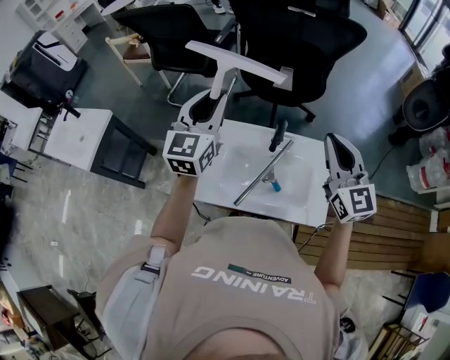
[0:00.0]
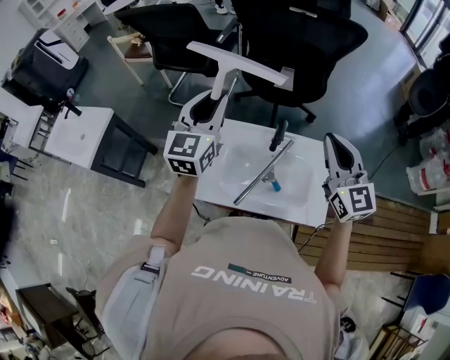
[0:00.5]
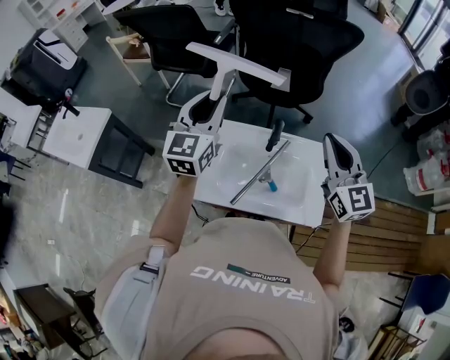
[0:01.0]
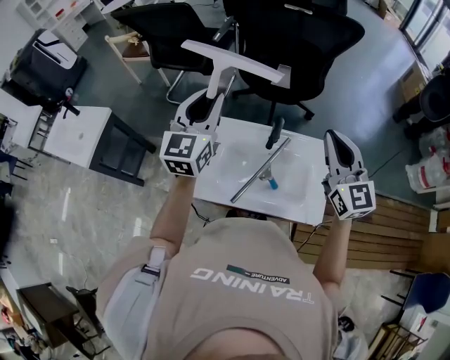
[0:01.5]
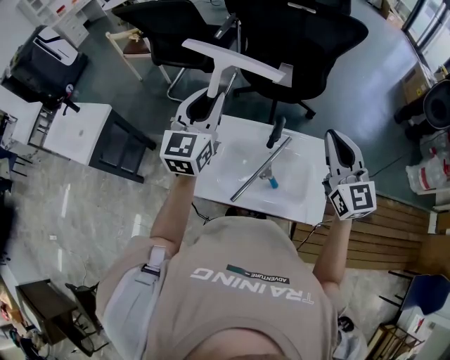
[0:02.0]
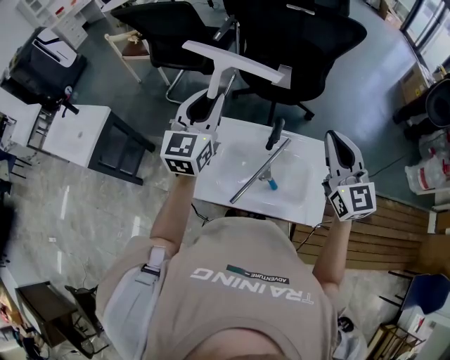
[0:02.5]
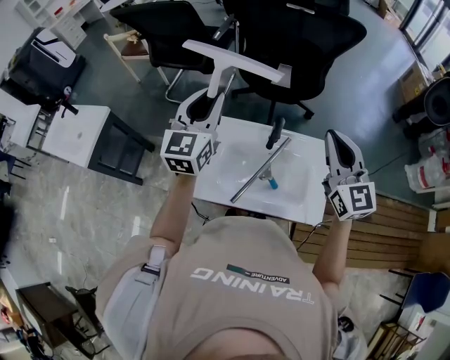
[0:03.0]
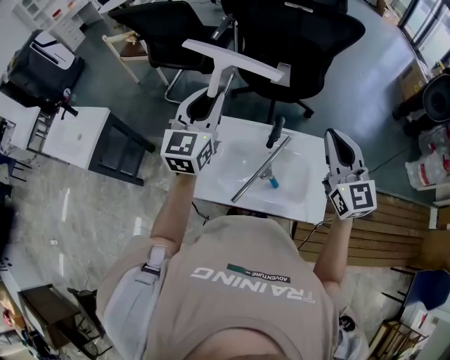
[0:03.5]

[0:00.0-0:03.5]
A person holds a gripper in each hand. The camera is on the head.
0:00.0 to 0:03.5: Both grippers stay put.

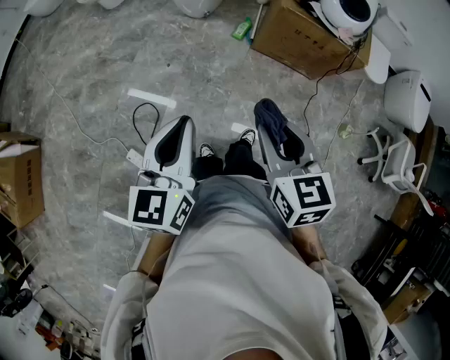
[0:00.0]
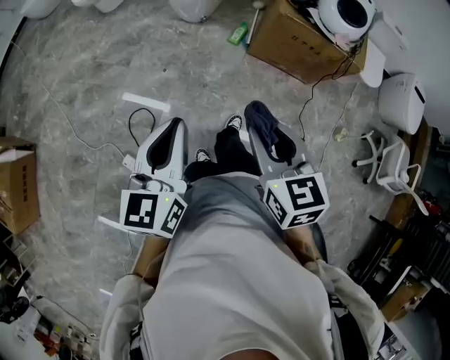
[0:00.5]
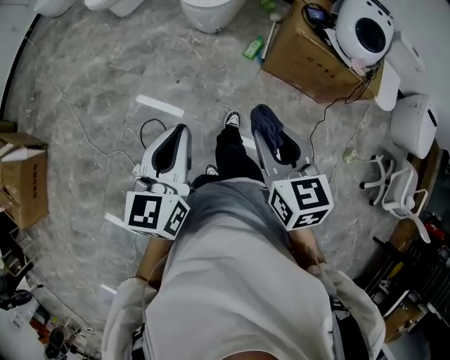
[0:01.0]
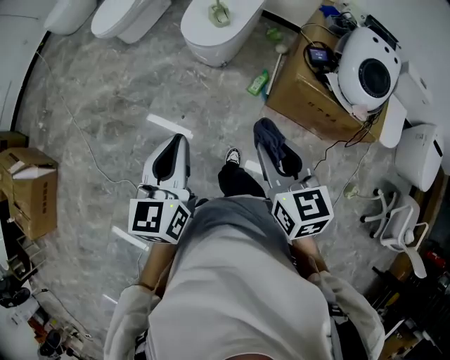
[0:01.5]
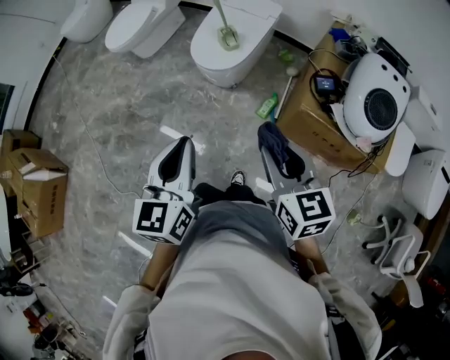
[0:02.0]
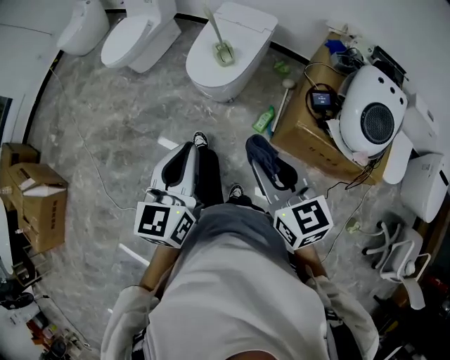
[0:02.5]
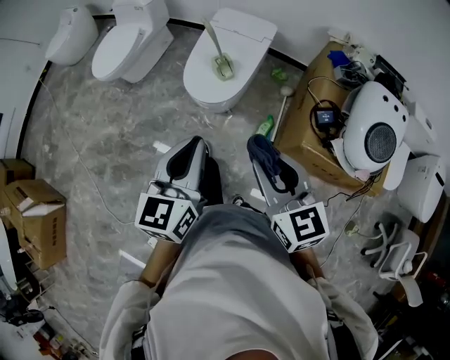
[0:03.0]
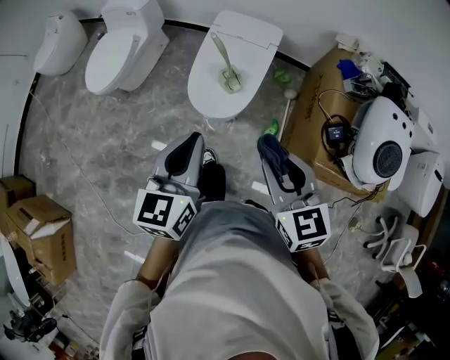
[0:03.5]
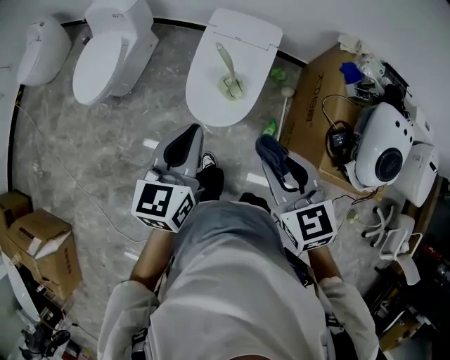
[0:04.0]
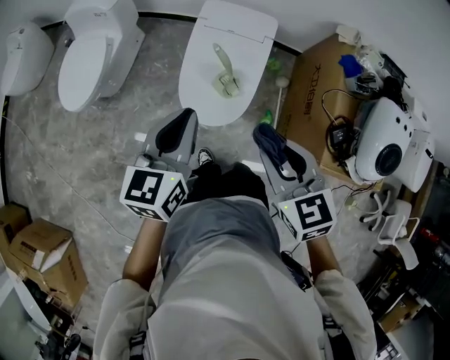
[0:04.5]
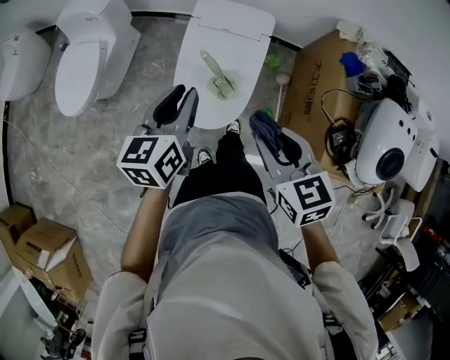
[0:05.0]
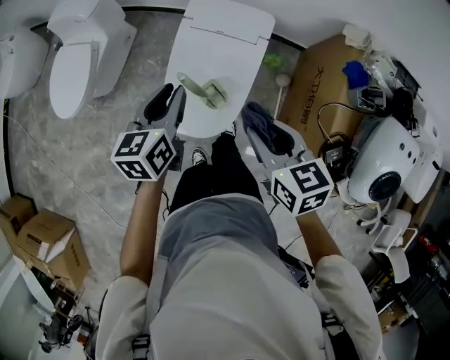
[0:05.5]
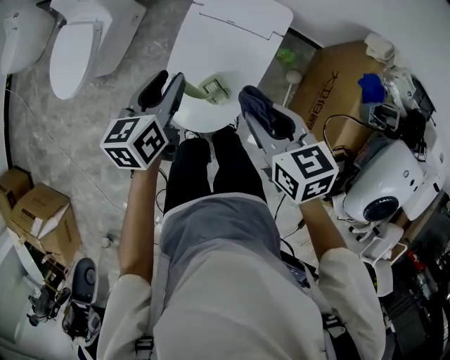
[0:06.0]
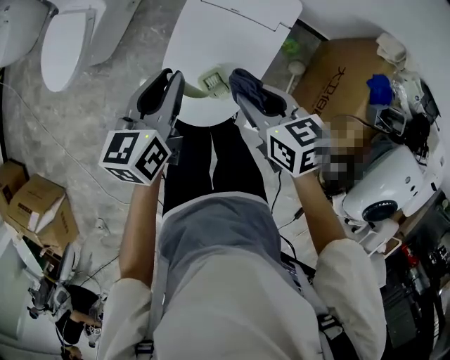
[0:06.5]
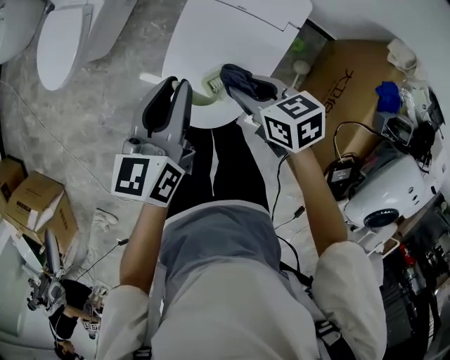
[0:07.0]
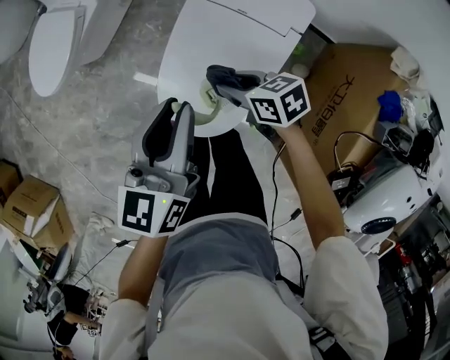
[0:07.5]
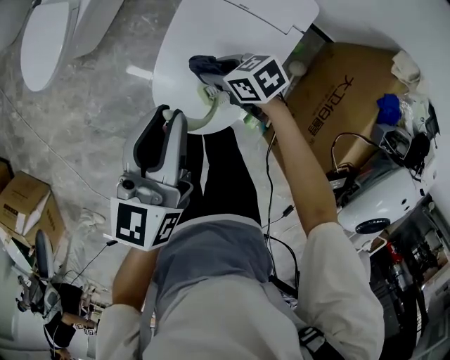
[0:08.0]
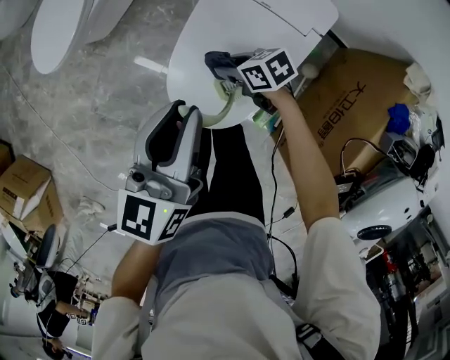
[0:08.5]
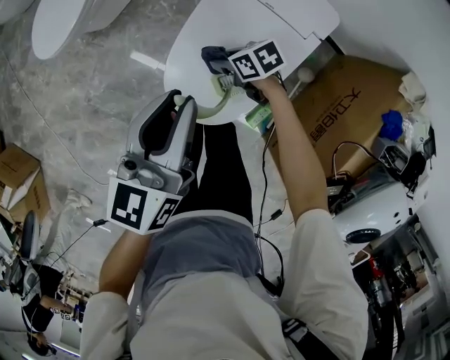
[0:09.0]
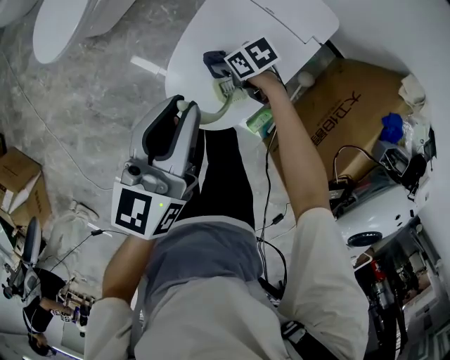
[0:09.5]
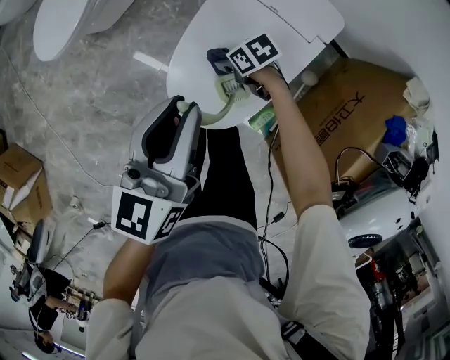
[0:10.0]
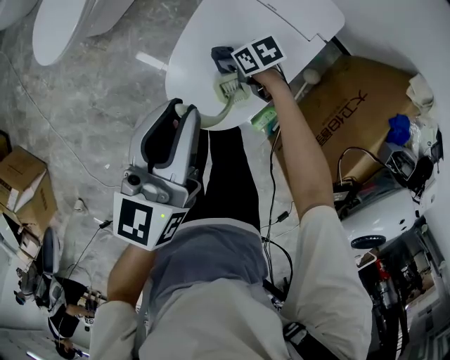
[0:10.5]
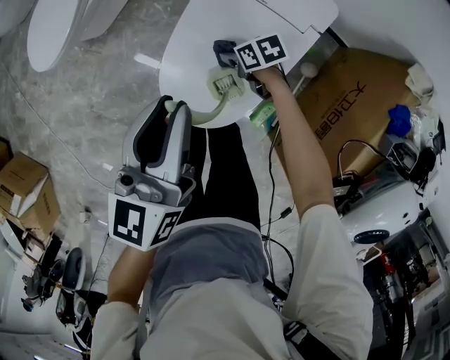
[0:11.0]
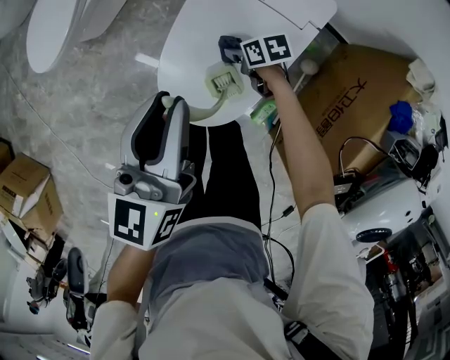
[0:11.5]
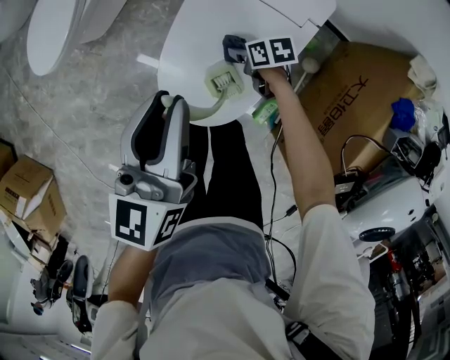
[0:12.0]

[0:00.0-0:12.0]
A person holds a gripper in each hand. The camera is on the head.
0:00.0 to 0:02.0: Both grippers move forward, about 40 cm.
0:02.0 to 0:04.0: Both grippers are carried forward, about 40 cm.
0:04.0 to 0:06.0: The grippers both shift forward and downward by some 35 cm. The right gripper turns by about 20 degrees.
0:06.0 to 0:08.0: The right gripper travels downward by some 25 cm, and changes its angle by some 40 degrees.
0:08.0 to 0:10.0: The right gripper moves downward, about 10 cm.
0:10.0 to 0:12.0: The right gripper heads to the right, covering about 10 cm, and swivels roughly 30 degrees.

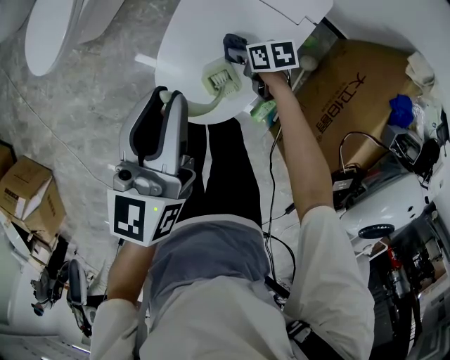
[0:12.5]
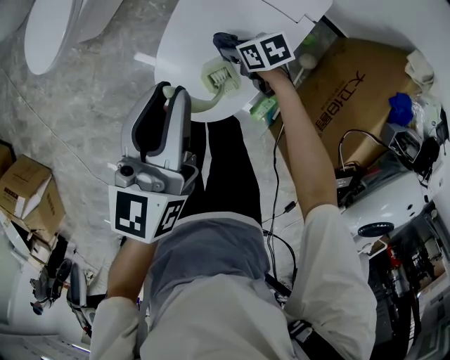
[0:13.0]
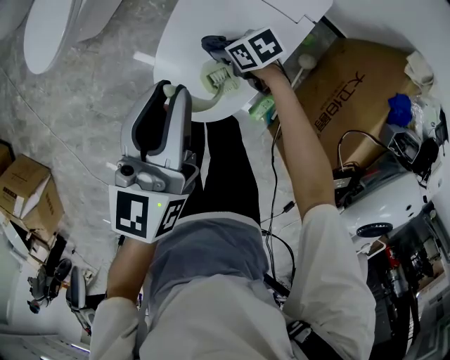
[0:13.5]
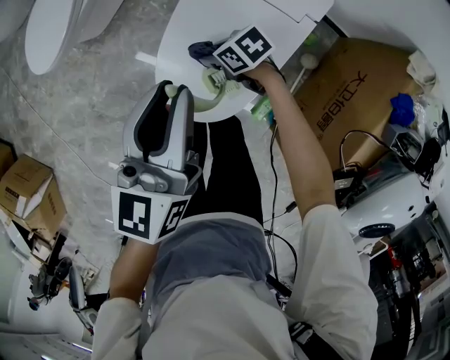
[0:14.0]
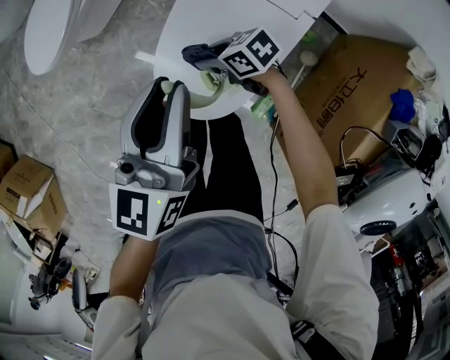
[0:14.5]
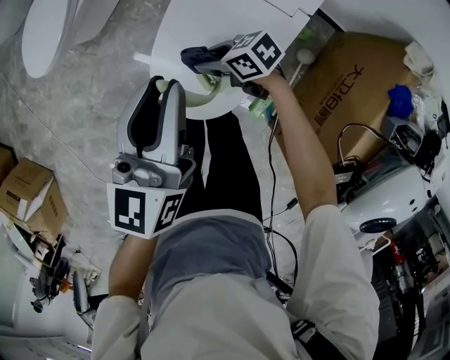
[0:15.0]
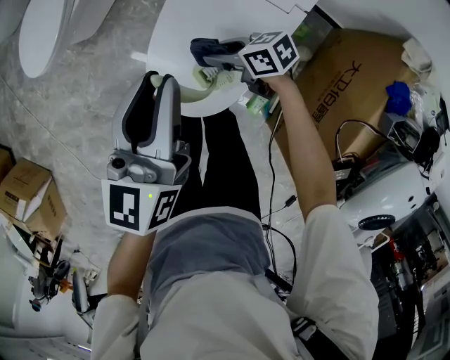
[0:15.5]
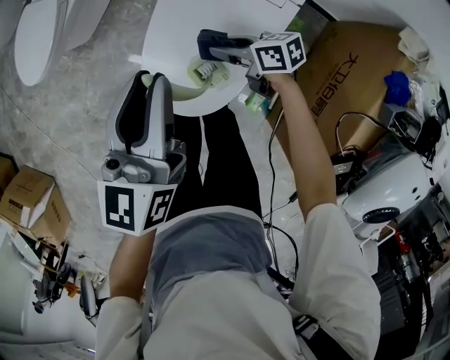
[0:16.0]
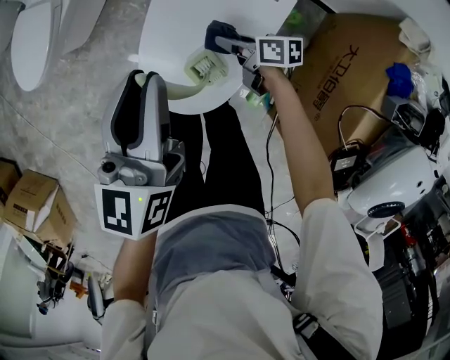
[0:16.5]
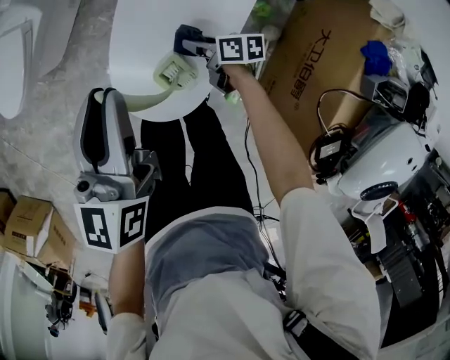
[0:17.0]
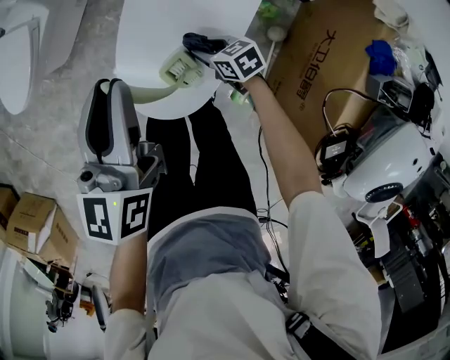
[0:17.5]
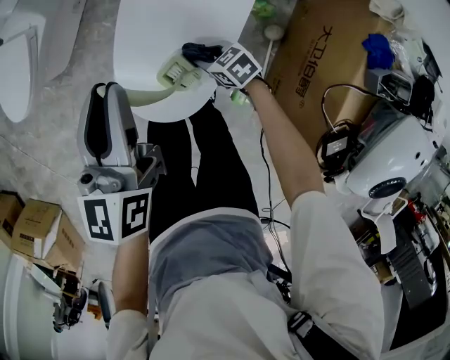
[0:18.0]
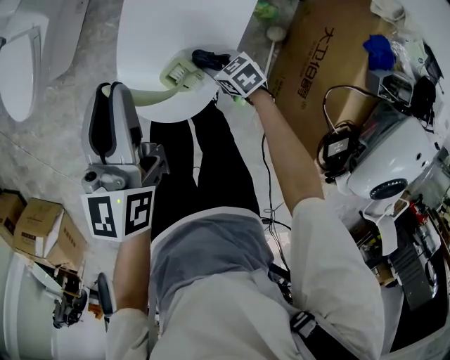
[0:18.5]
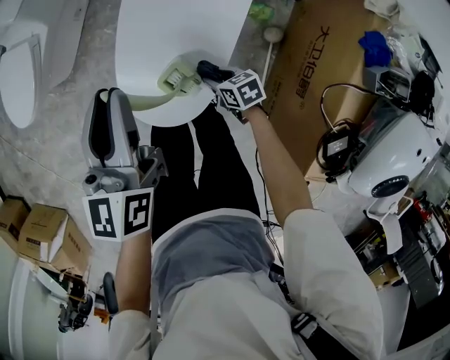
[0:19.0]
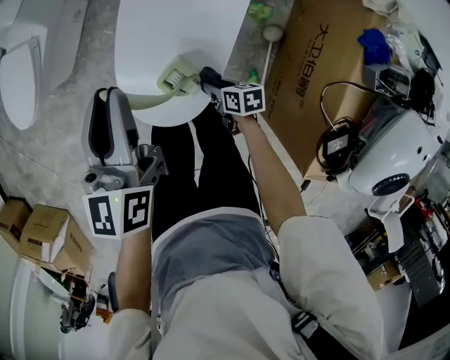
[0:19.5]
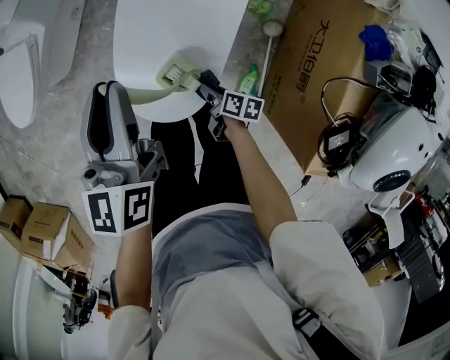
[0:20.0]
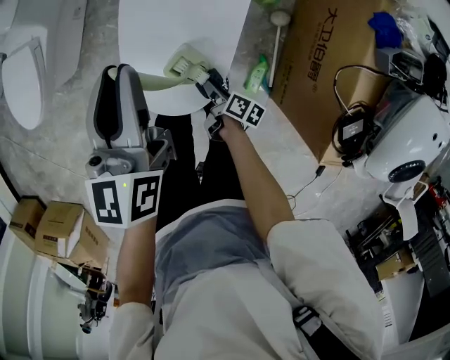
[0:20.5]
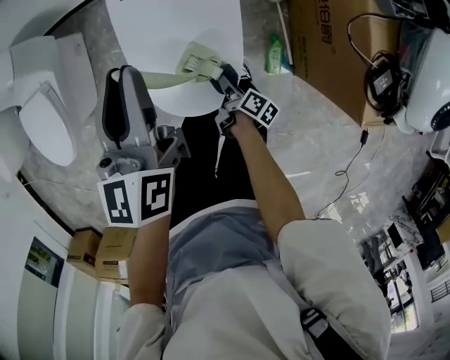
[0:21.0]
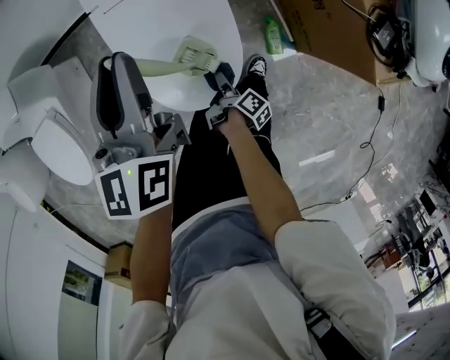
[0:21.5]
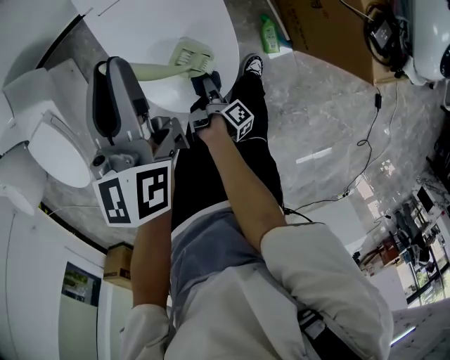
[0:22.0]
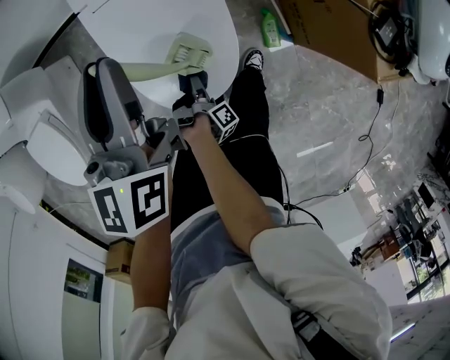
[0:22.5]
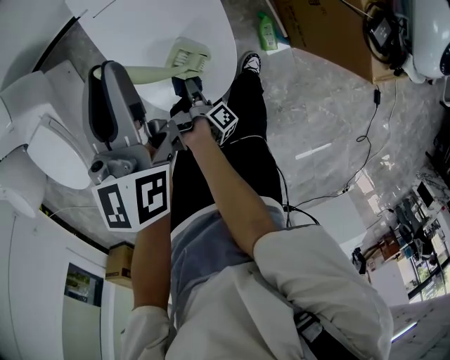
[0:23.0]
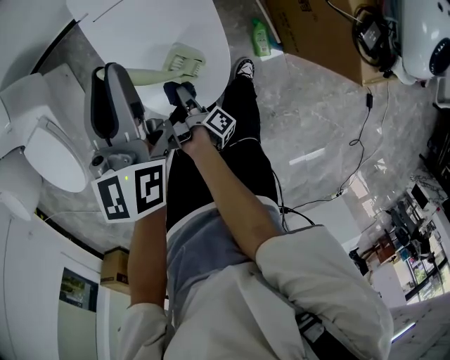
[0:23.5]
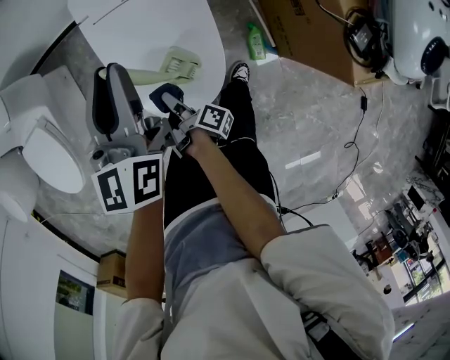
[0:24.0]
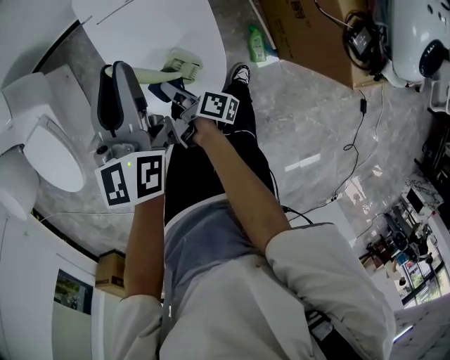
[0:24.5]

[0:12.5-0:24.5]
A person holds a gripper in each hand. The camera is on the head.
0:12.5 to 0:14.5: The right gripper travels to the left and upward by some 15 cm, and turns by about 30 degrees.
0:14.5 to 0:16.5: The right gripper is displaced to the right by approximately 10 cm, and swivels about 50 degrees.
0:16.5 to 0:18.5: The right gripper heads backward, covering approximately 10 cm, and swivels some 40 degrees.
0:18.5 to 0:20.5: The right gripper is displaced backward by approximately 10 cm, and rolls clockwise, seen from behind, by roughly 80 degrees.
0:20.5 to 0:22.5: The left gripper changes its angle by approximately 20 degrees. Meanwhile the right gripper moves some 10 cm, and swivels roughly 90 degrees.
0:22.5 to 0:24.5: The right gripper heads upward and forward, covering some 15 cm, and changes its angle by some 60 degrees.
